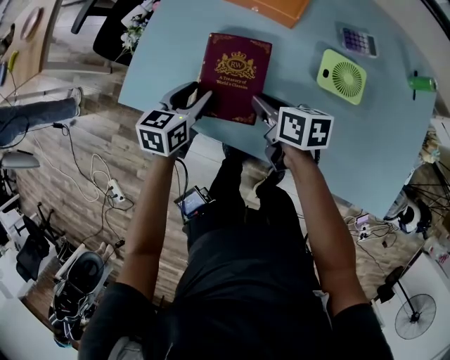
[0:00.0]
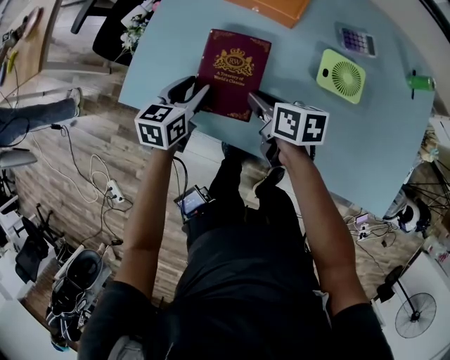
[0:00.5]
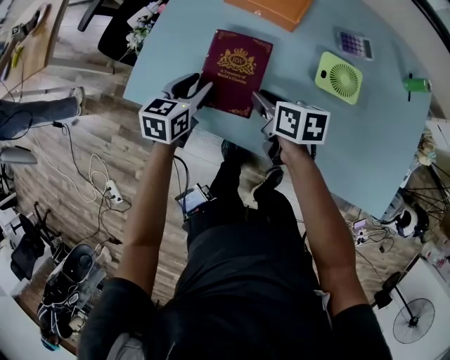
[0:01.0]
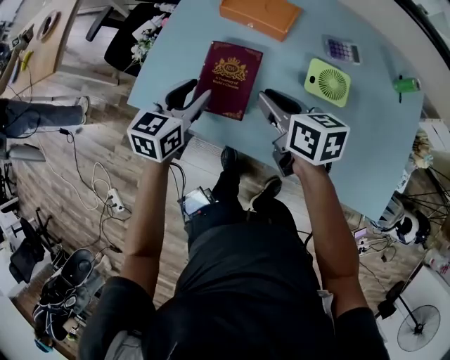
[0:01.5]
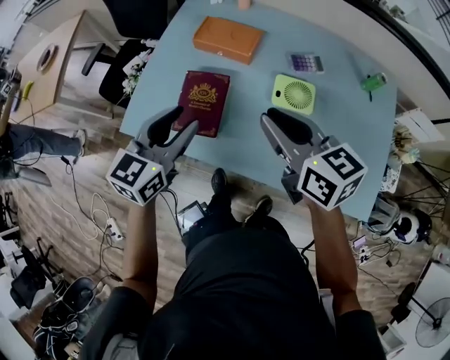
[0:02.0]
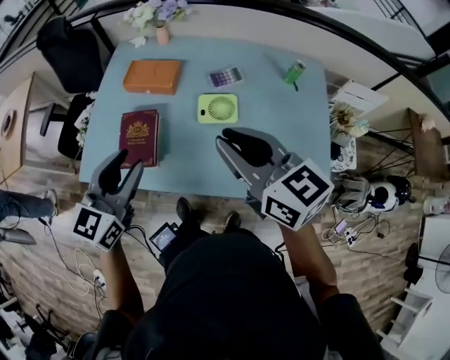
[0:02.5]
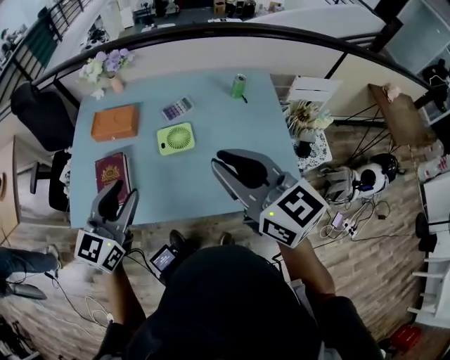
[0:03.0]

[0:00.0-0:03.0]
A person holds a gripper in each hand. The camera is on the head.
0:00.0 to 0:01.5: Both grippers travel together upward, approximately 10 cm.
0:01.5 to 0:03.0: The left gripper goes about 35 cm to the right, upward and backward, and turns by some 30 degrees, while the right gripper goes some 50 cm upward, to the right and backward, and turns by some 40 degrees.

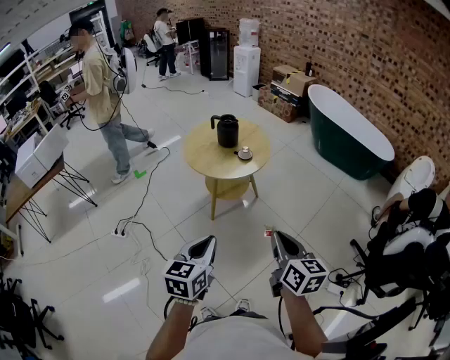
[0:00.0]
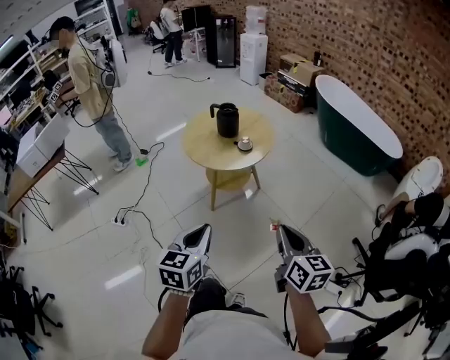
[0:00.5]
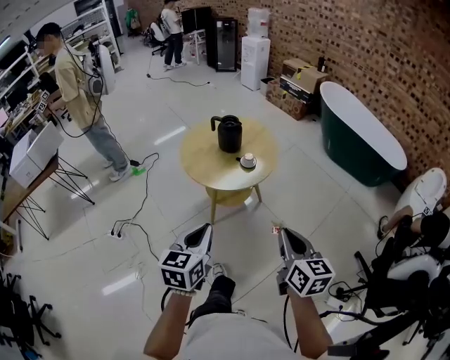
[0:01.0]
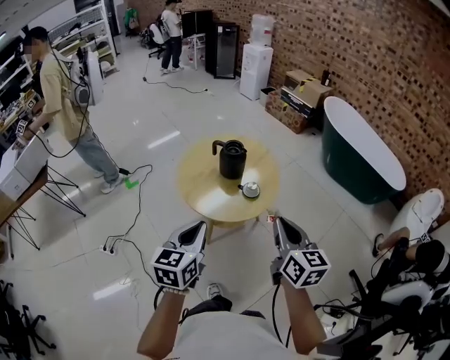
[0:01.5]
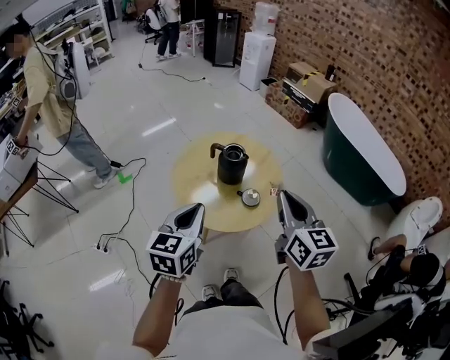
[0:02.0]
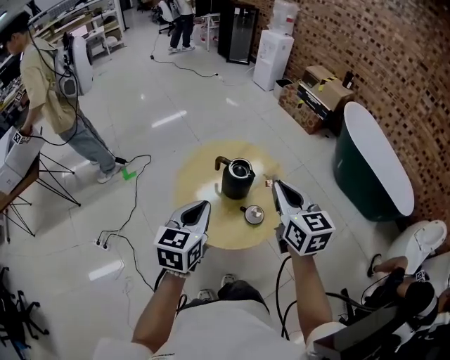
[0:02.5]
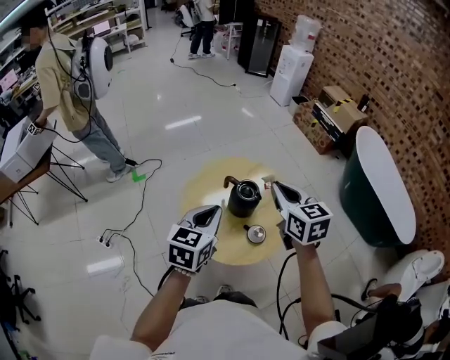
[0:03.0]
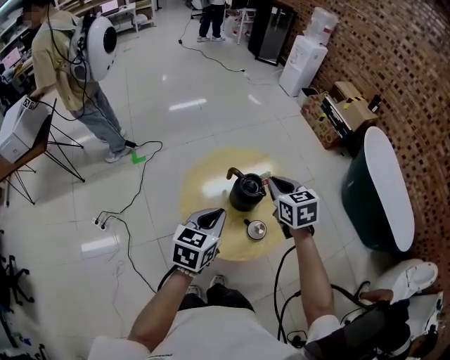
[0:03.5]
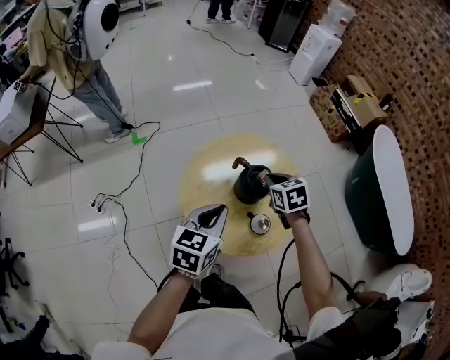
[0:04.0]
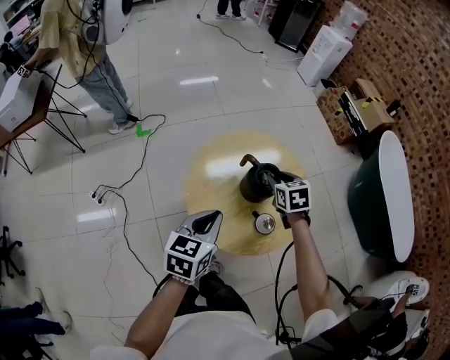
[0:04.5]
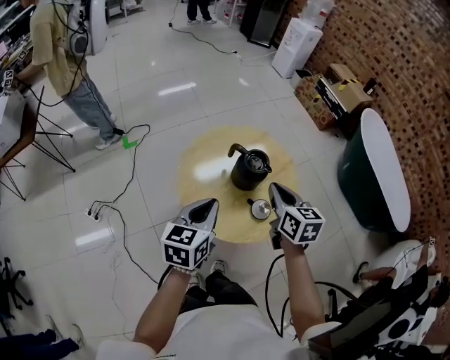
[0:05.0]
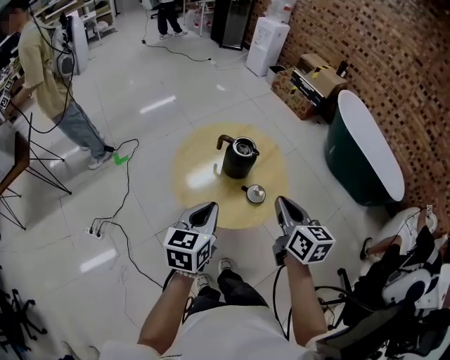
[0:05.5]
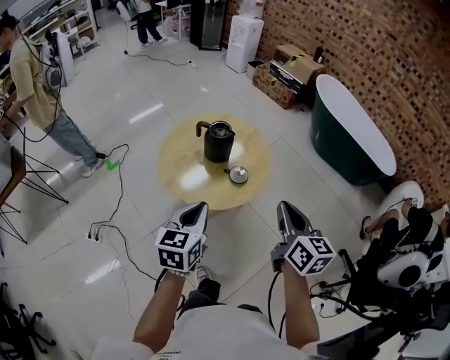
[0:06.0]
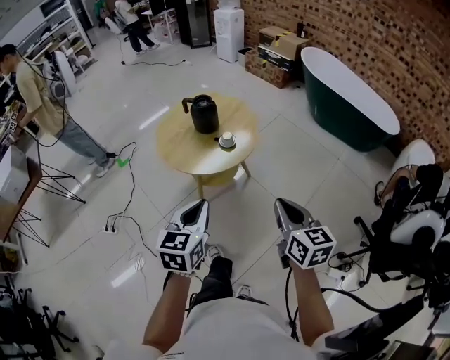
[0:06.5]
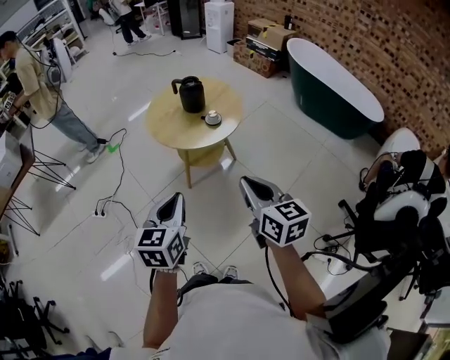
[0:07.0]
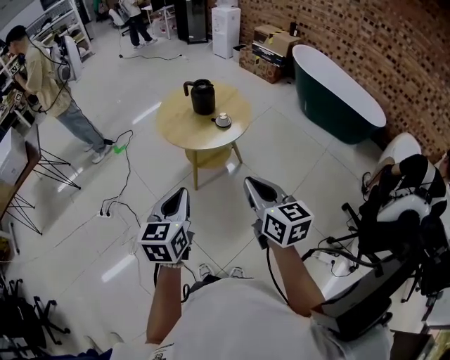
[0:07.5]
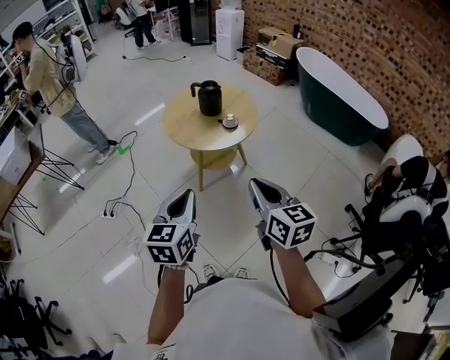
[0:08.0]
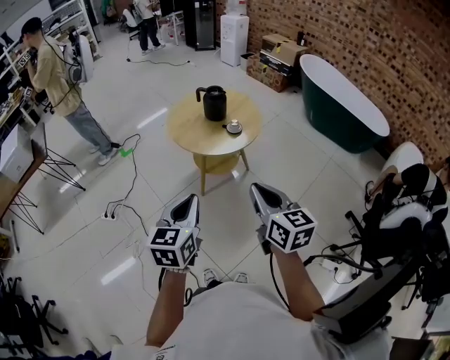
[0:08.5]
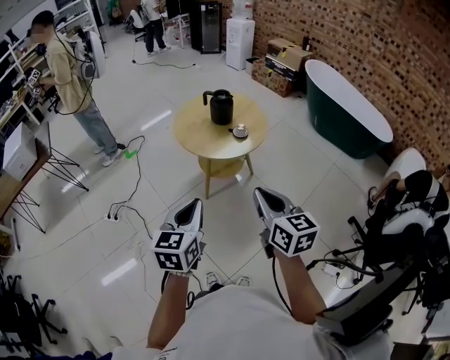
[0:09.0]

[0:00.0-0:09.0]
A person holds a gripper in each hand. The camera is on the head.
0:00.0 to 0:02.0: The pair of grippers is taken forward, approximately 40 cm.
0:02.0 to 0:04.5: The right gripper shifts roughly 40 cm forward and downward, angles its fingers downward, by about 40 degrees, and opens. Meanwhile the left gripper goes about 15 cm forward and downward.
0:04.5 to 0:07.0: The two grippers travel together, backward, some 50 cm. The right gripper tips its fingers upward by some 40 degrees, and closes.
0:07.0 to 0:09.0: Both grippers move to the left, roughly 5 cm.

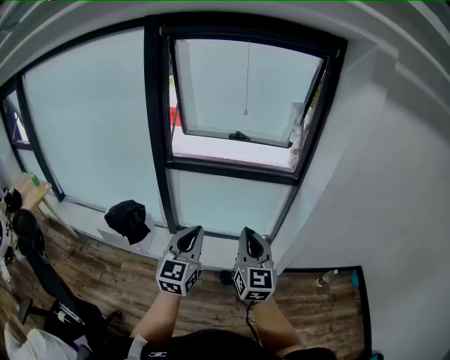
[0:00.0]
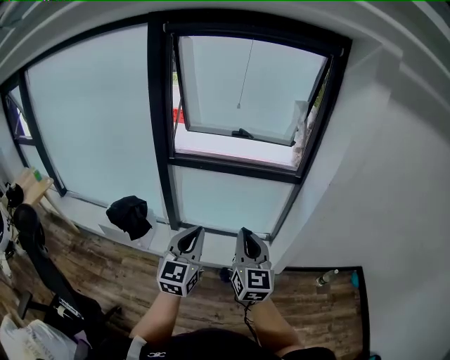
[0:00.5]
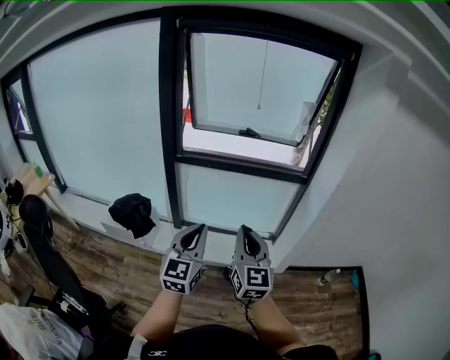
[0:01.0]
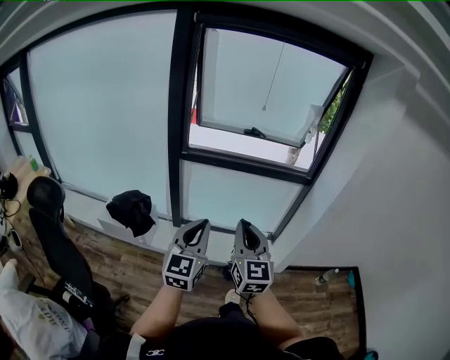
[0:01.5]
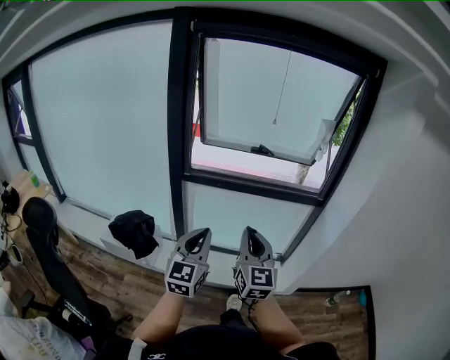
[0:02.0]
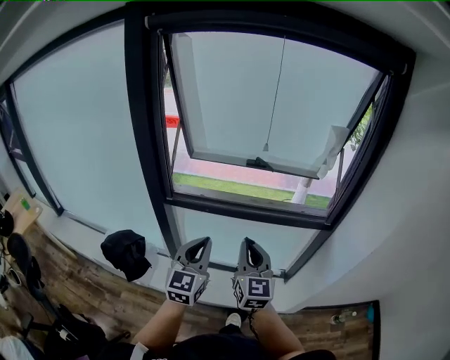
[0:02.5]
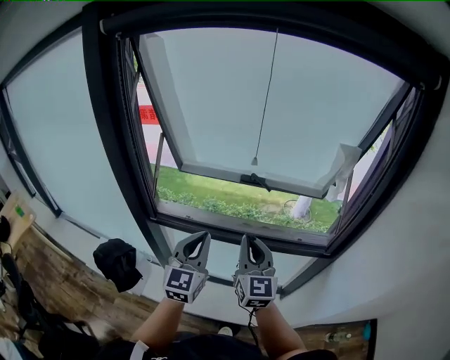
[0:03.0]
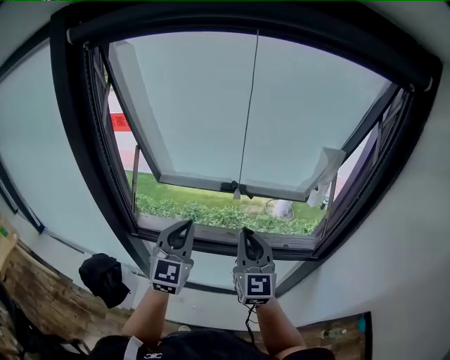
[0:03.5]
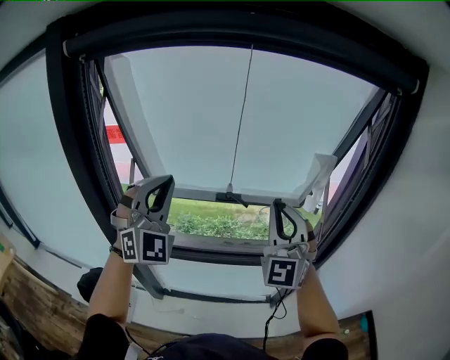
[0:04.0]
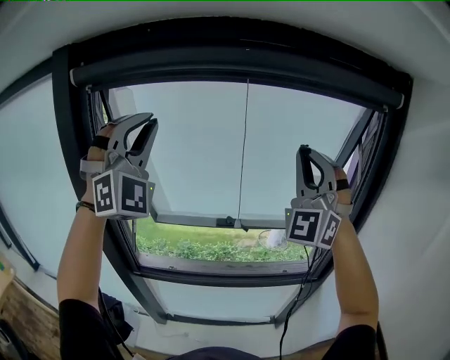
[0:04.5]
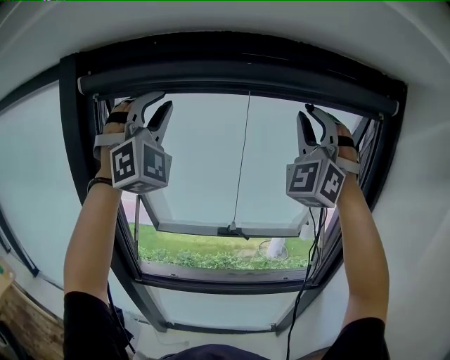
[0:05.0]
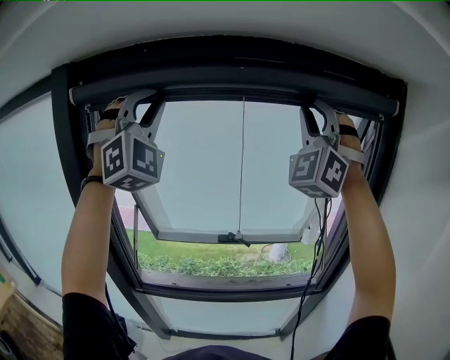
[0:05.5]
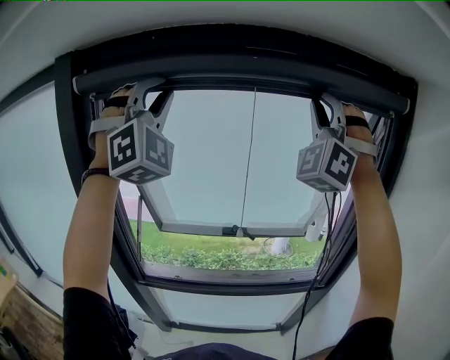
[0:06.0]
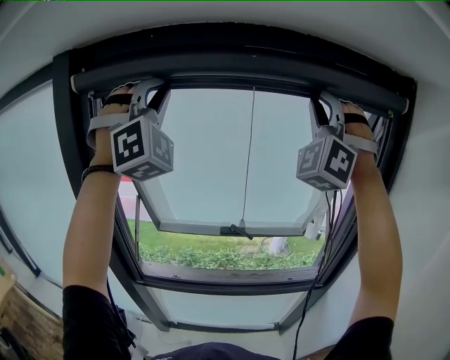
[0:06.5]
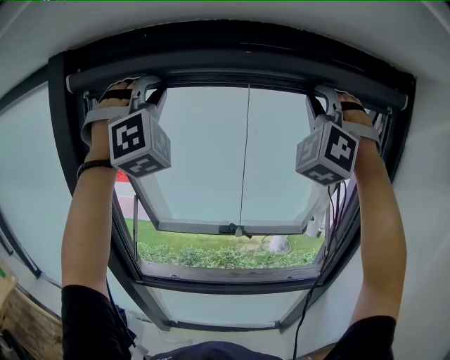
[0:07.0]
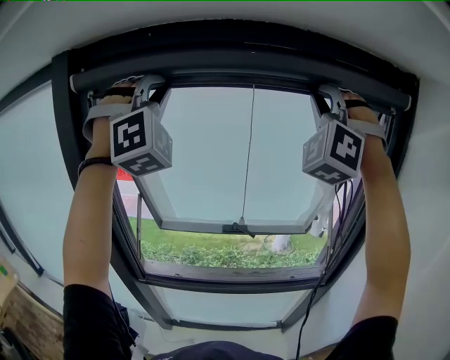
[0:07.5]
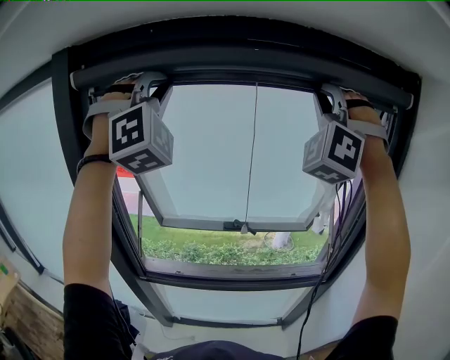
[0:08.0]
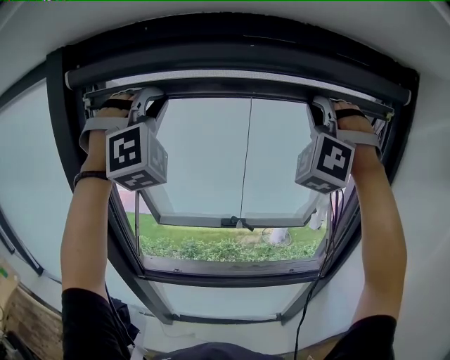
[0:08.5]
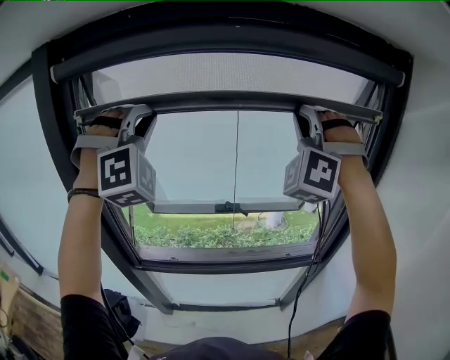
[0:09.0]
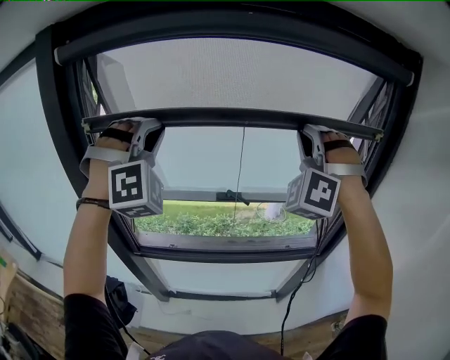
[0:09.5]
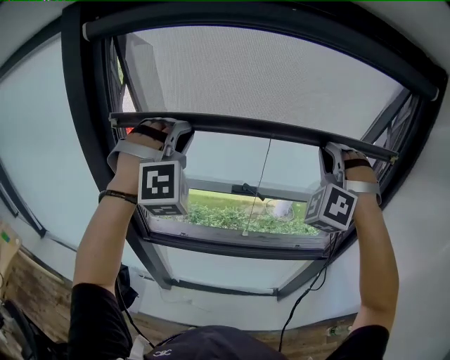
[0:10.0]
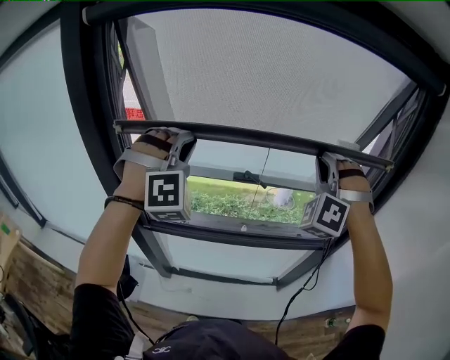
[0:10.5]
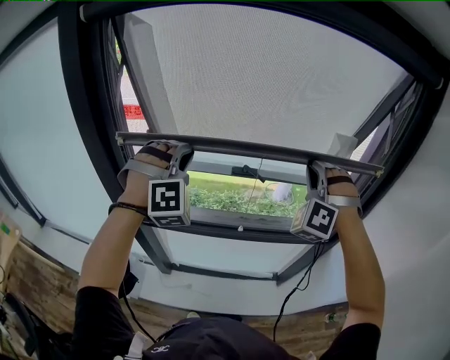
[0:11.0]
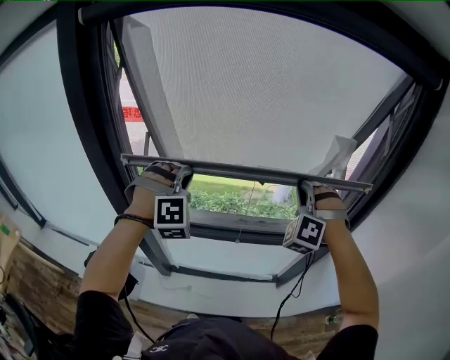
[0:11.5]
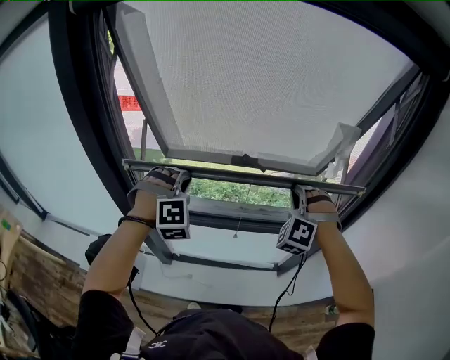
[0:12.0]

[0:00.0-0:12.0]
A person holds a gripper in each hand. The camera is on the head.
0:00.0 to 0:02.0: The right gripper travels to the left and forward by some 20 cm; the left gripper shifts some 15 cm forward and to the left.
0:02.0 to 0:04.0: The two grippers travel together, forward, approximately 50 cm. Both grippers travel together upward, some 20 cm. The left gripper rolls clockwise, seen from behind, by about 60 degrees; the right gripper twists roughly 50 degrees counterclockwise, seen from behind.
0:04.0 to 0:06.0: The two grippers go some 30 cm upward. The right gripper rolls counterclockwise, seen from behind, by roughly 40 degrees. Meanwhile the left gripper rotates roughly 30 degrees.
0:06.0 to 0:08.0: The grippers stay close to where they were, moving slightly.
0:08.0 to 0:10.0: The grippers both shift downward by some 20 cm.
0:10.0 to 0:12.0: Both grippers move downward, roughly 25 cm. The right gripper swivels approximately 20 degrees, while the left gripper rotates about 20 degrees.

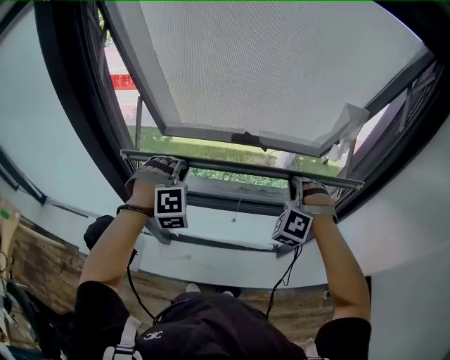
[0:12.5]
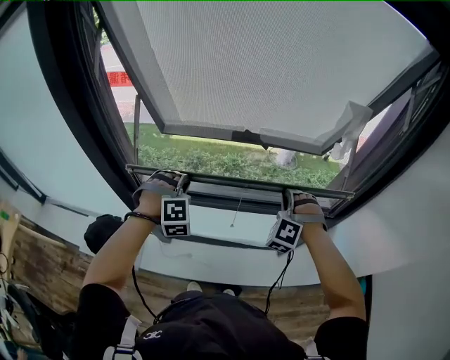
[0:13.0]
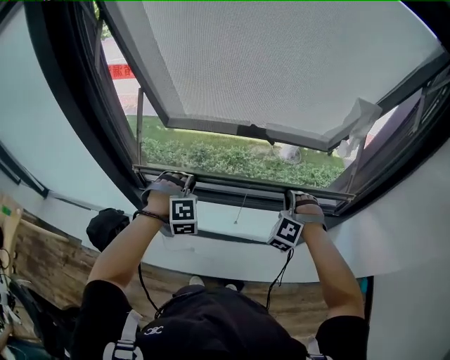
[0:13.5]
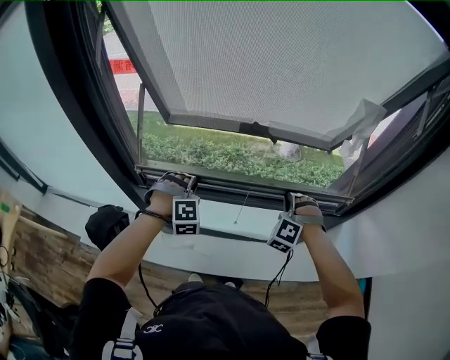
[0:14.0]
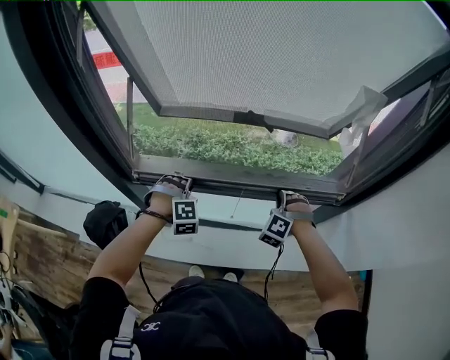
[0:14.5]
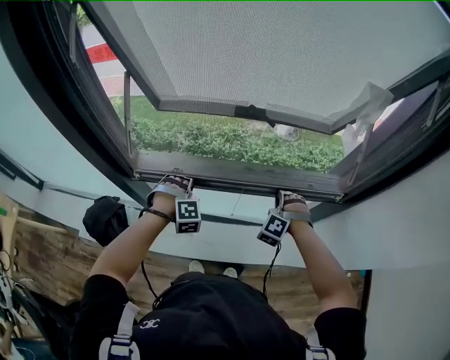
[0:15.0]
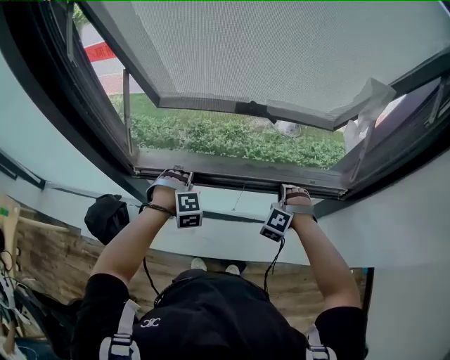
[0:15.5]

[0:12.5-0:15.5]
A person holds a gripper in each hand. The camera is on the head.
0:12.5 to 0:14.0: The grippers both shift downward by approximately 15 cm.
0:14.0 to 0:15.5: Both grippers move downward, approximately 10 cm.
